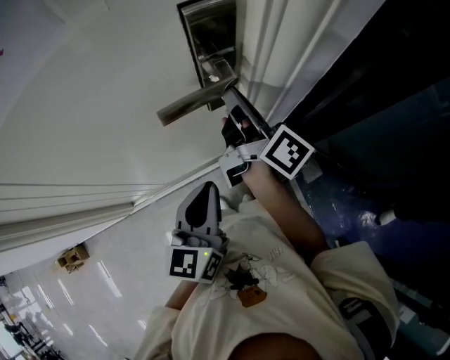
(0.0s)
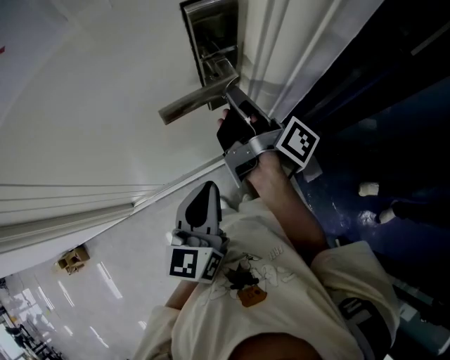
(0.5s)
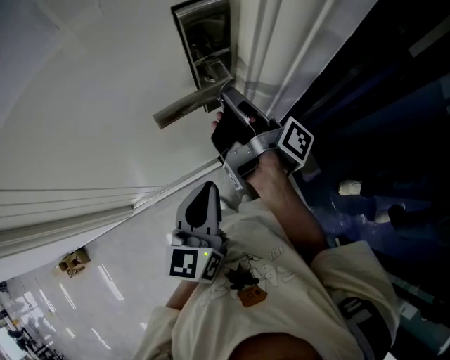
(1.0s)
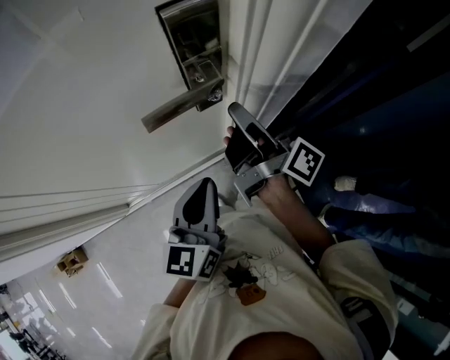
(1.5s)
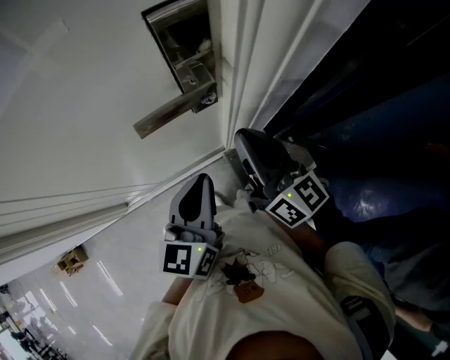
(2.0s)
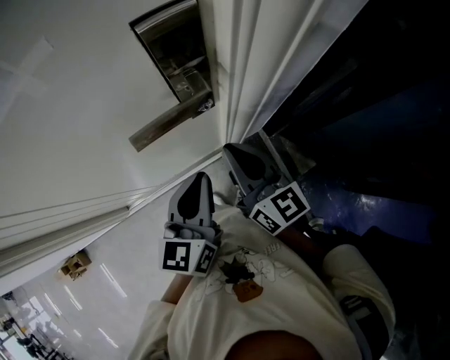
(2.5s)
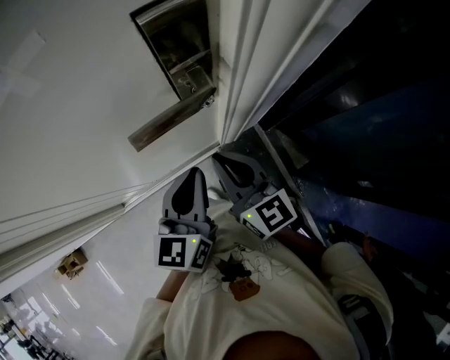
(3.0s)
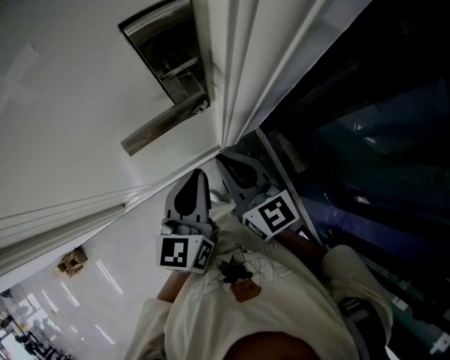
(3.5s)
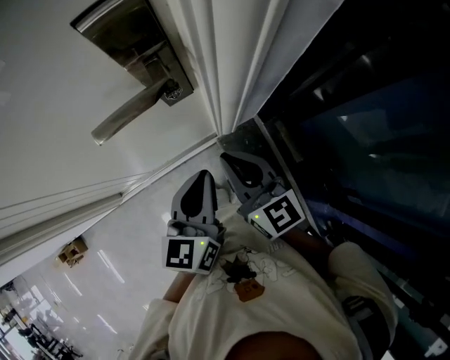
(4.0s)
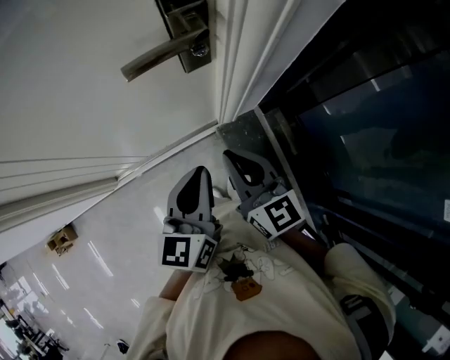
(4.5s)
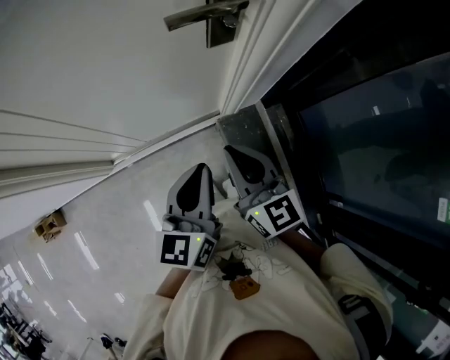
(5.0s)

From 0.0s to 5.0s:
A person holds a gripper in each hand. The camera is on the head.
From 0.0s to 2.5s: The right gripper heads backward and downward, covering about 10 cm, and swivels about 40 degrees.
From 2.5s to 5.0s: Both grippers move backward, approximately 15 cm.

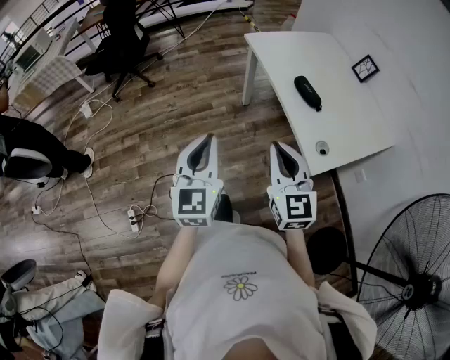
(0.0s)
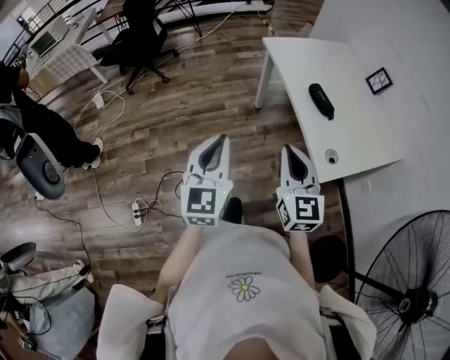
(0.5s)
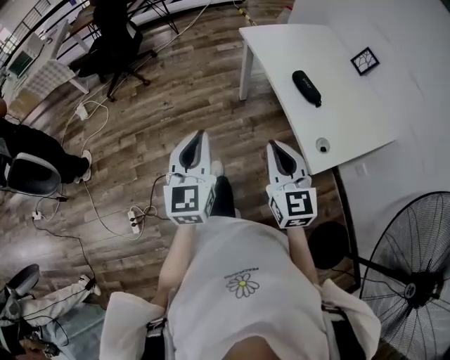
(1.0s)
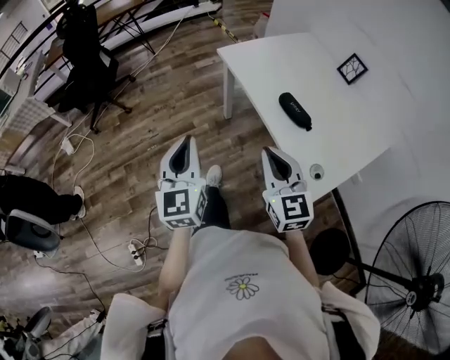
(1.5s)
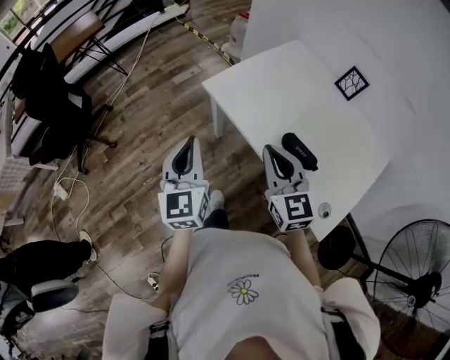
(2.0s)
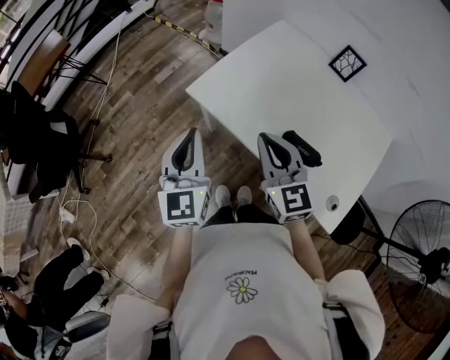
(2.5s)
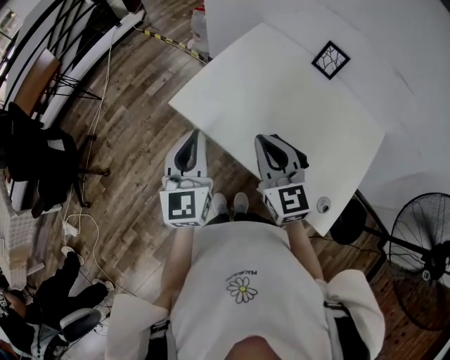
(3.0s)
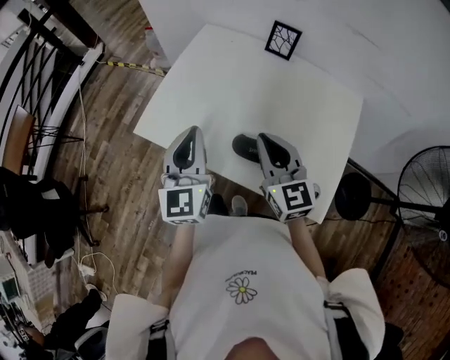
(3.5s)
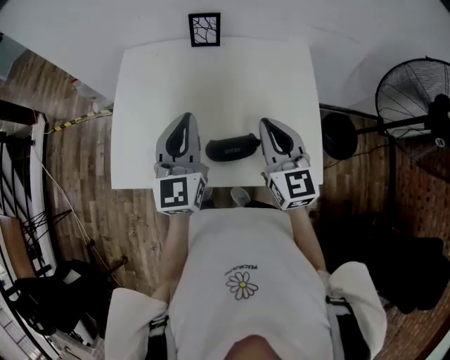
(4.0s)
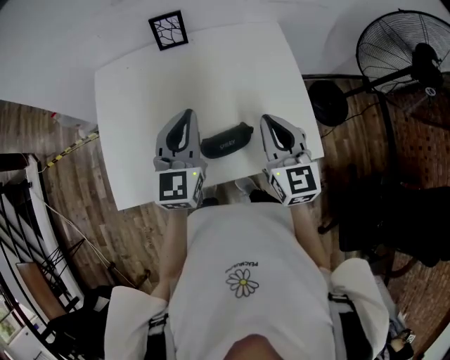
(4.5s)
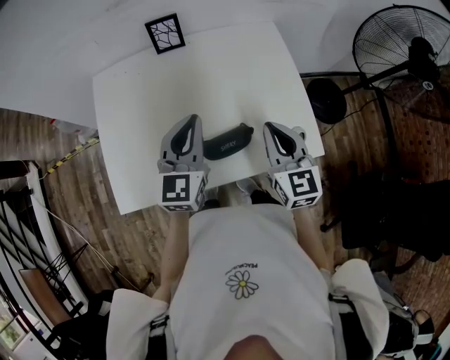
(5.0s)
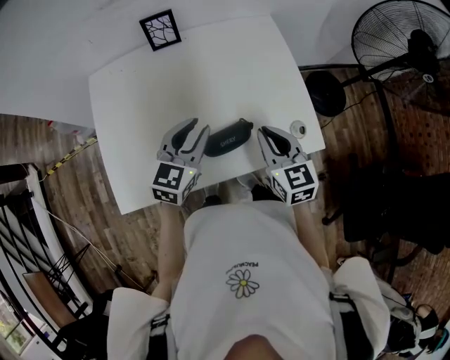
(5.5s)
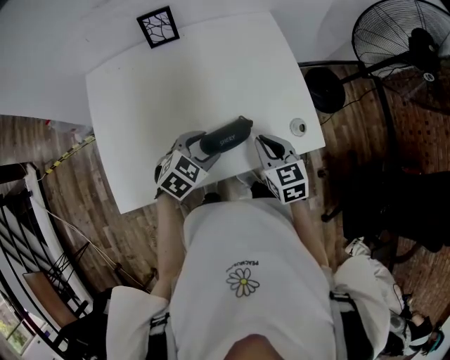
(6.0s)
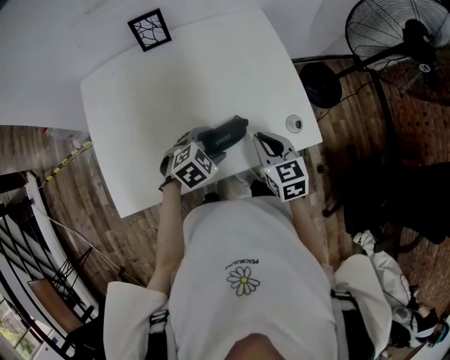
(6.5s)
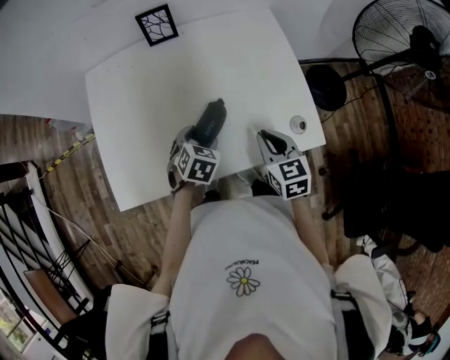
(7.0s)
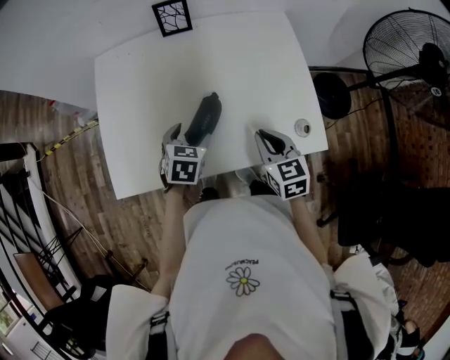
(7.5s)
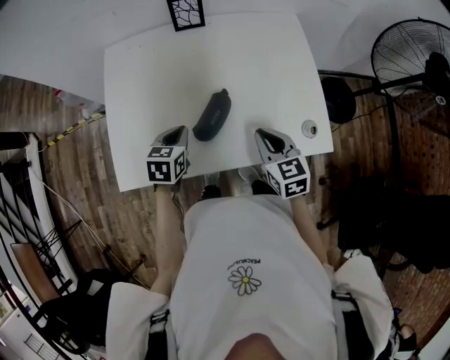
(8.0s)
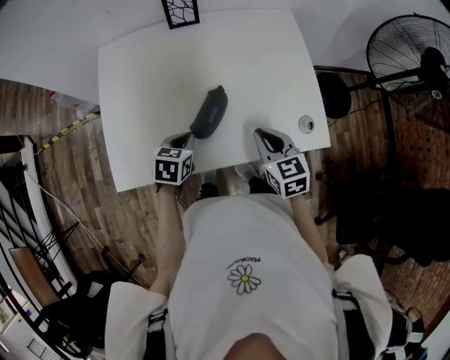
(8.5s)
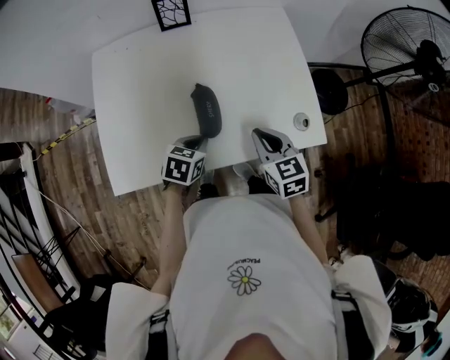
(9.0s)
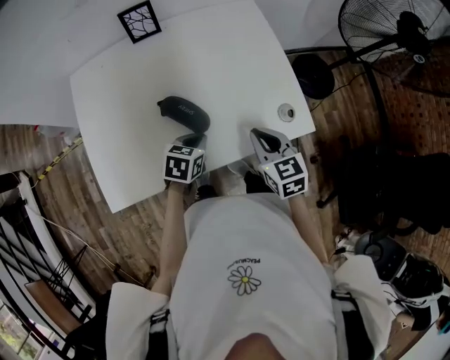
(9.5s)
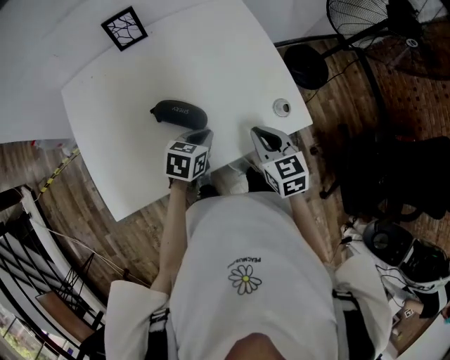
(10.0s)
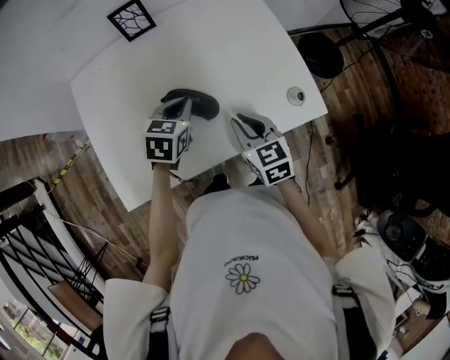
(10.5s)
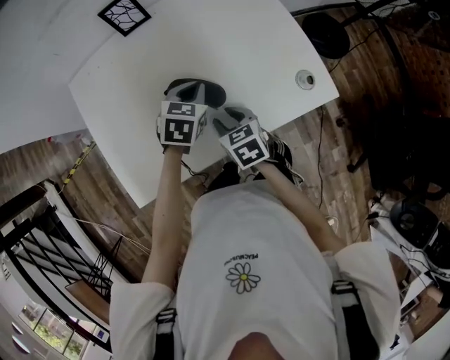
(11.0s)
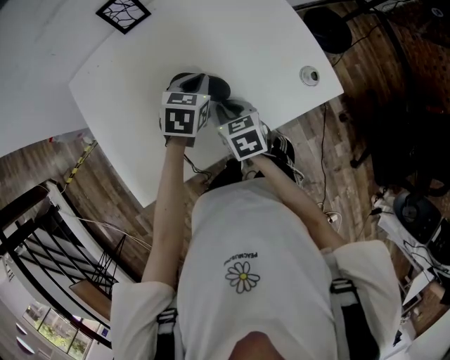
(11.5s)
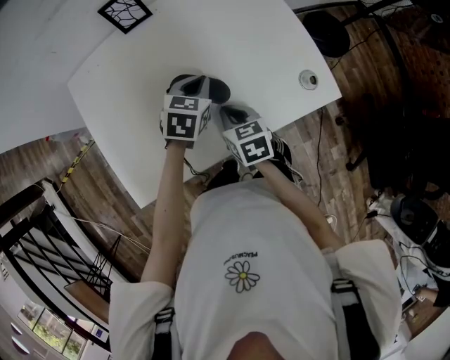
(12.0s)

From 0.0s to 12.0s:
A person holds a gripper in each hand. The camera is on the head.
From 0.0s to 2.0s: Both grippers travel together forward, roughly 40 cm.
From 2.0s to 4.0s: The left gripper ends up some 35 cm from where it was, and turns by some 60 degrees, while the right gripper changes place by roughly 25 cm, and swivels approximately 50 degrees.
From 4.0s to 6.0s: The grippers both shift downward by approximately 15 cm. The right gripper rotates some 30 degrees, while the left gripper tilts its fingers approximately 50 degrees downward, and opens its fingers.
From 6.0s to 8.0s: The left gripper shifts by approximately 15 cm, rotates approximately 50 degrees, and closes its fingers.
From 8.0s to 10.0s: The right gripper is displaced to the right by roughly 10 cm, while the left gripper is displaced to the right by about 15 cm, and turns by some 30 degrees.
From 10.0s to 12.0s: The right gripper travels to the left and downward by roughly 15 cm, and opens, then closes once more, while the left gripper travels forward and to the left by about 10 cm.

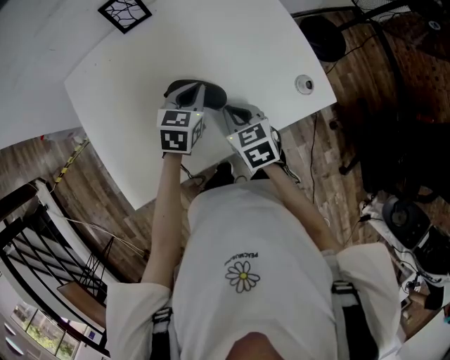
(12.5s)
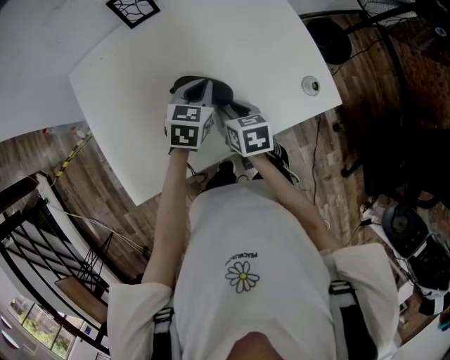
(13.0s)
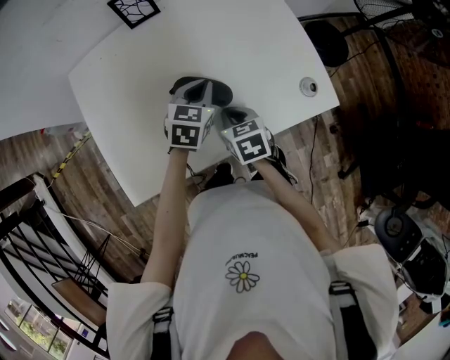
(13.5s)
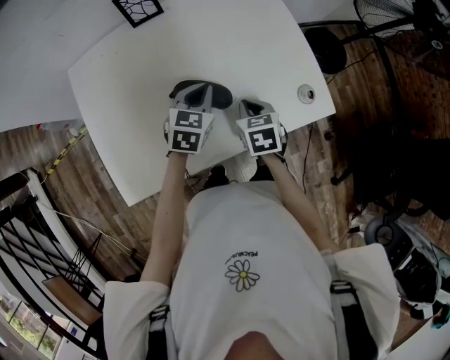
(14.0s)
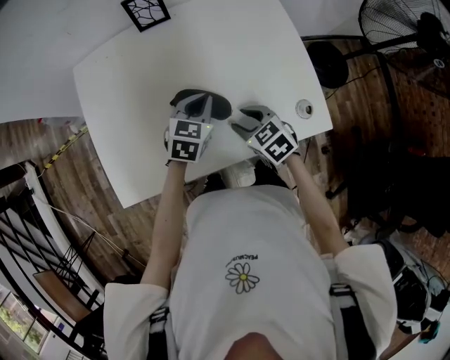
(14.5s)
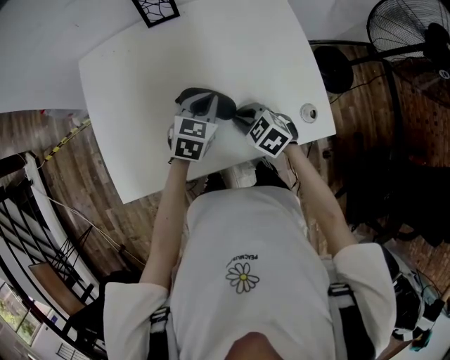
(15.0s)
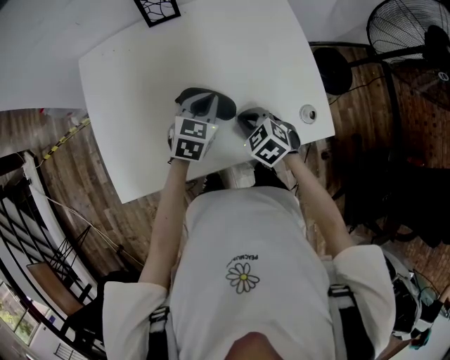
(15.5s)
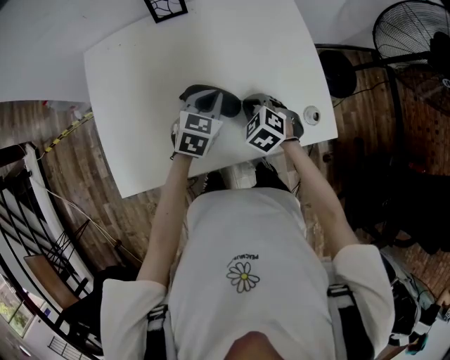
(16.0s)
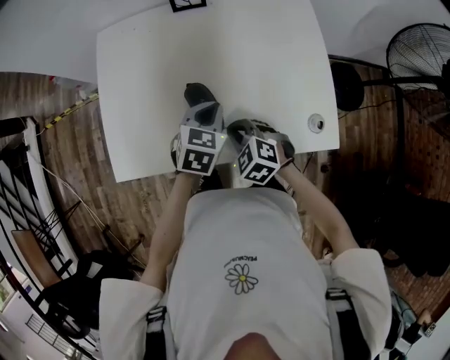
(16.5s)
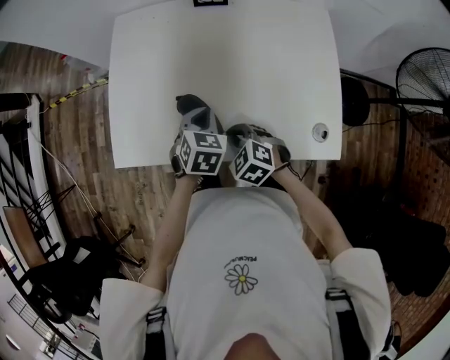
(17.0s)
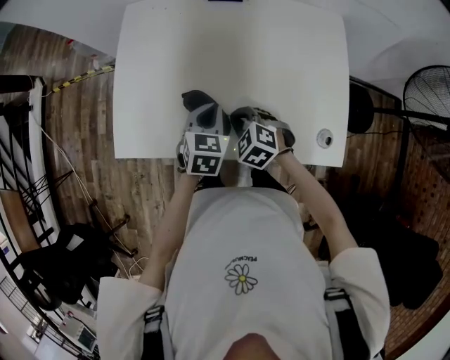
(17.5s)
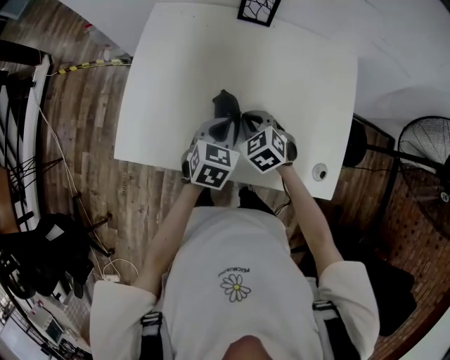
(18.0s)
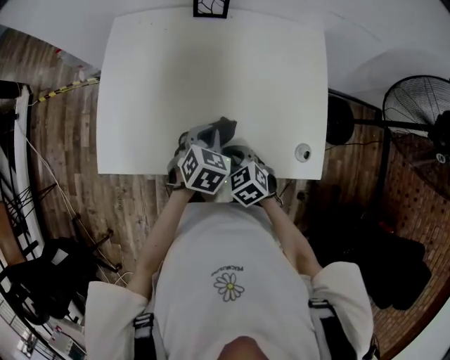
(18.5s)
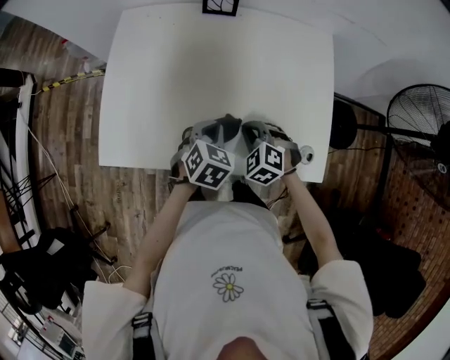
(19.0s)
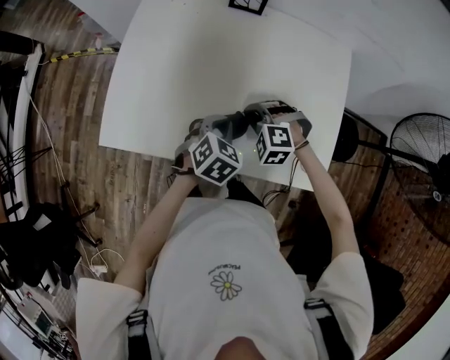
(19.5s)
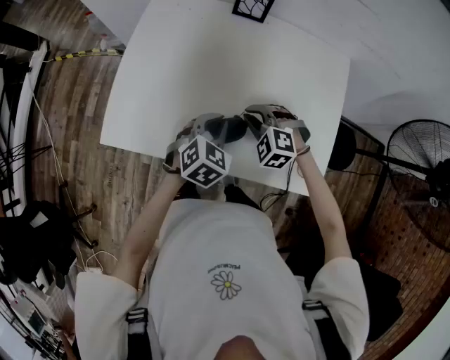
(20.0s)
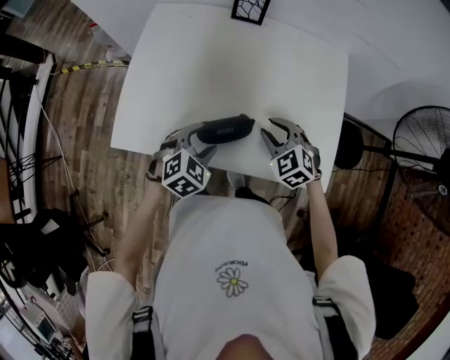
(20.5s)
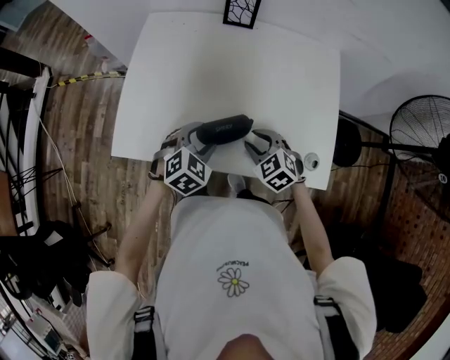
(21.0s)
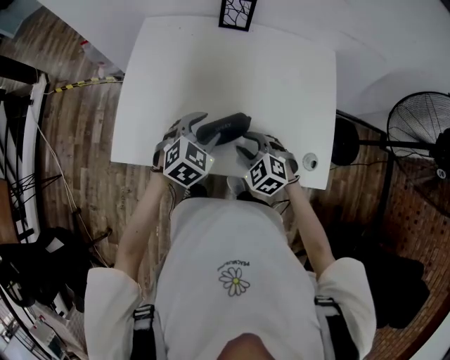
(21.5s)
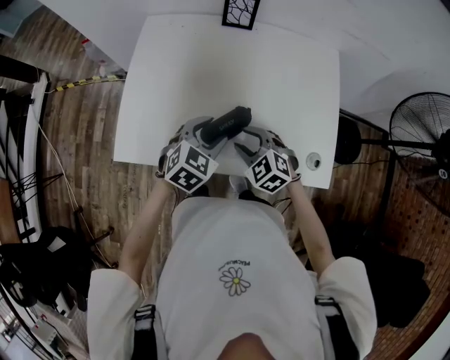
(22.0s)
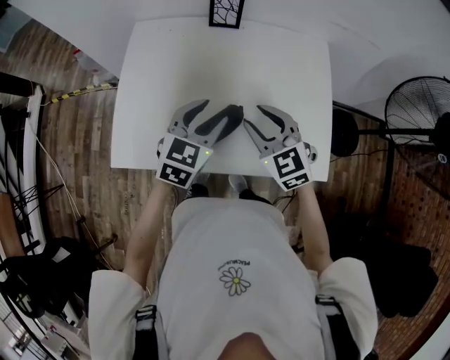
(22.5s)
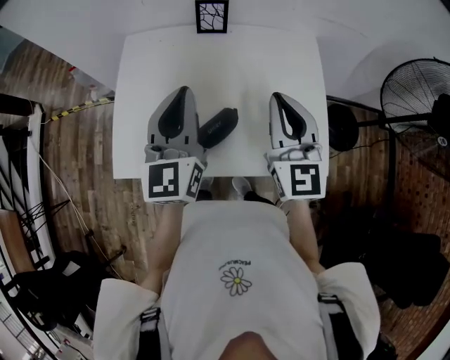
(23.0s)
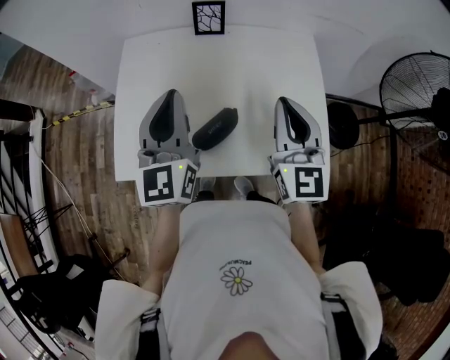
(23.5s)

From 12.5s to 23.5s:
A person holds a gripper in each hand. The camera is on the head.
From 12.5s to 14.5s: The right gripper swivels some 30 degrees, and opens.
From 14.5s to 16.0s: The right gripper changes its angle by approximately 30 degrees, and closes.
From 16.0s to 18.0s: The right gripper shifts by some 10 cm. Meanwhile the left gripper changes place by about 10 cm, and changes its angle by approximately 30 degrees.
From 18.0s to 20.0s: The right gripper travels backward and back again, some 10 cm each way, and swivels roughly 30 degrees.
From 20.0s to 21.5s: The right gripper is displaced backward by some 10 cm, turns by about 20 degrees, and opens up. Meanwhile the left gripper opens its fingers.
From 21.5s to 23.5s: The two grippers go approximately 25 cm upward. The right gripper tips its fingers upward by some 50 degrees, and closes up; the left gripper tilts its fingers about 50 degrees upward, and closes.
